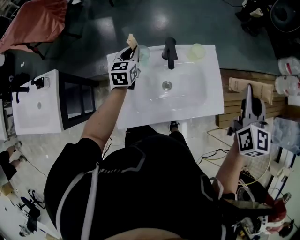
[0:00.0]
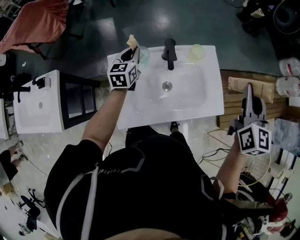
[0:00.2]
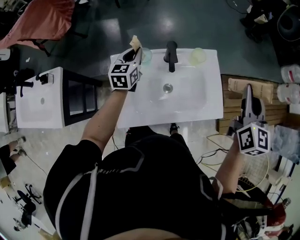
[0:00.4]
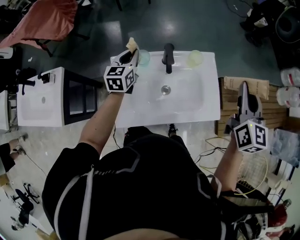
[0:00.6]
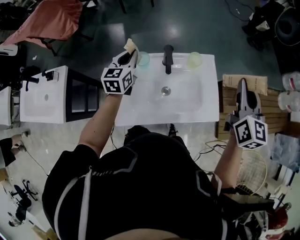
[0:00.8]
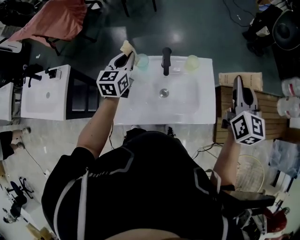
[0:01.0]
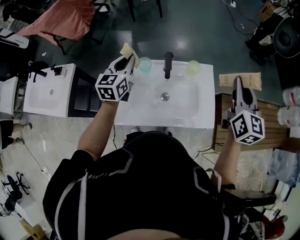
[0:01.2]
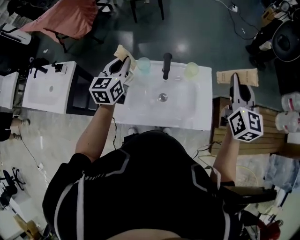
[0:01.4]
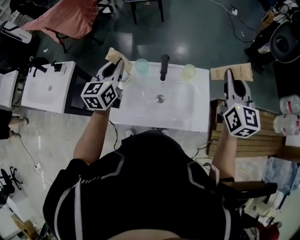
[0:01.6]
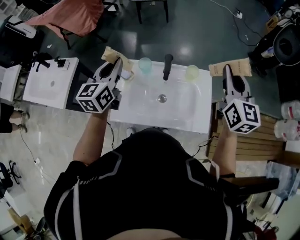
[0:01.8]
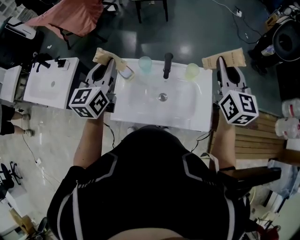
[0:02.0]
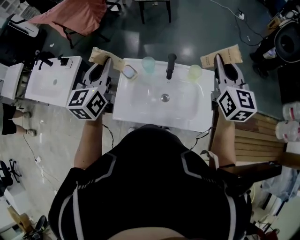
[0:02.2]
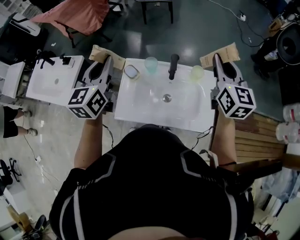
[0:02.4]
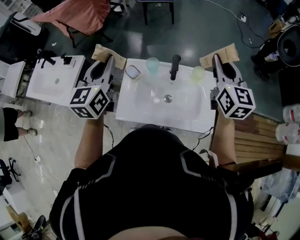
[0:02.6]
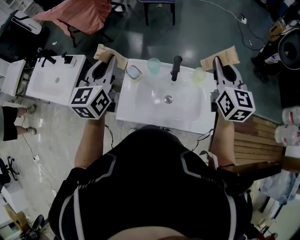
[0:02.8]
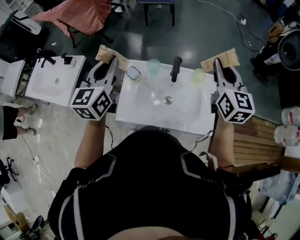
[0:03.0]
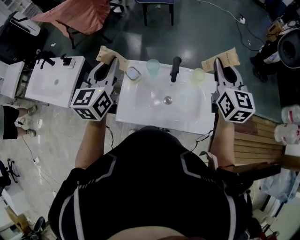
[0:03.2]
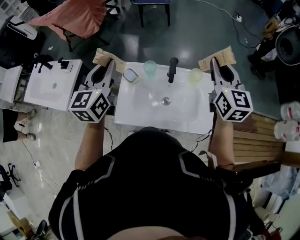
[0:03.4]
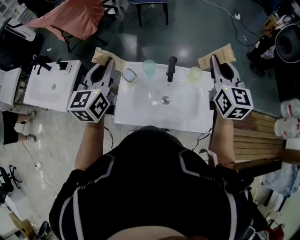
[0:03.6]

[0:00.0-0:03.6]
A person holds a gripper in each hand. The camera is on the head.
0:00.0 to 0:01.8: The left gripper moves upward and backward, roughly 25 cm, and rotates approximately 20 degrees. The right gripper travels forward and upward by roughly 10 cm, and changes its angle by approximately 20 degrees.
0:01.8 to 0:03.6: The left gripper moves upward, roughly 5 cm; the right gripper is displaced to the left by about 5 cm.

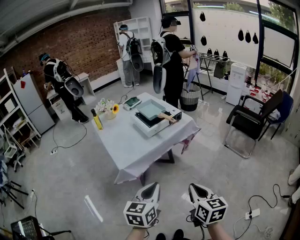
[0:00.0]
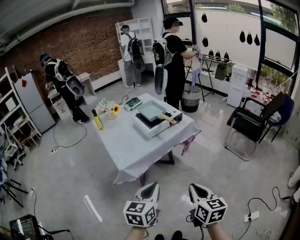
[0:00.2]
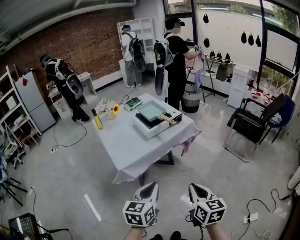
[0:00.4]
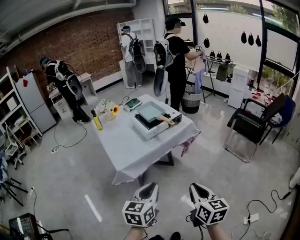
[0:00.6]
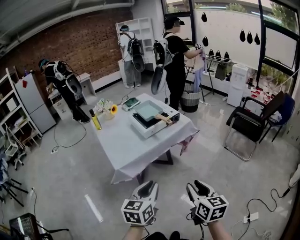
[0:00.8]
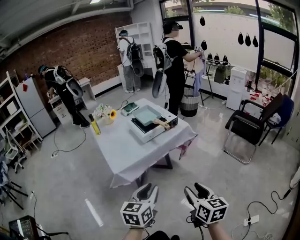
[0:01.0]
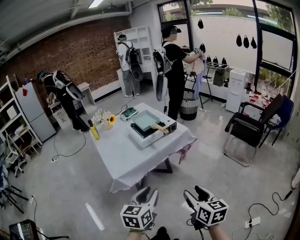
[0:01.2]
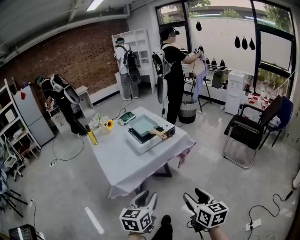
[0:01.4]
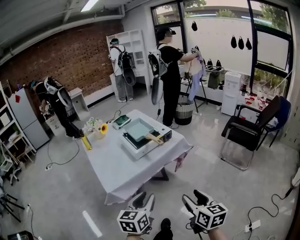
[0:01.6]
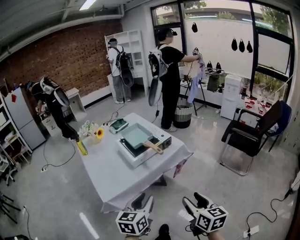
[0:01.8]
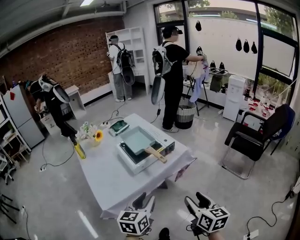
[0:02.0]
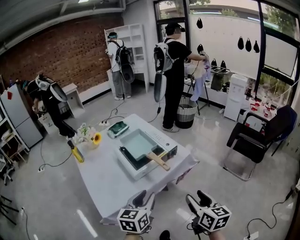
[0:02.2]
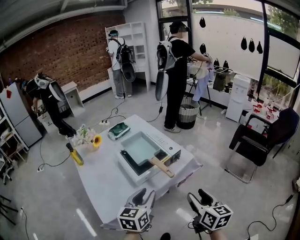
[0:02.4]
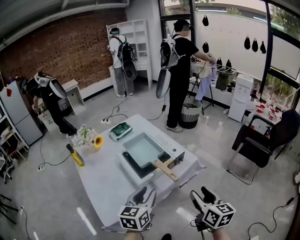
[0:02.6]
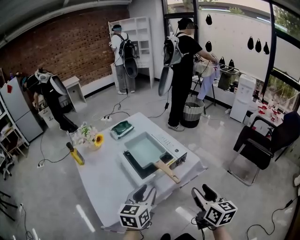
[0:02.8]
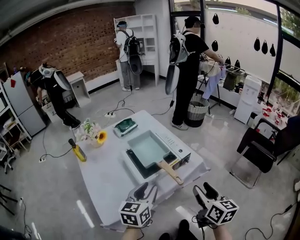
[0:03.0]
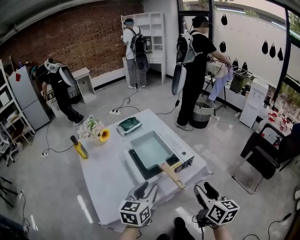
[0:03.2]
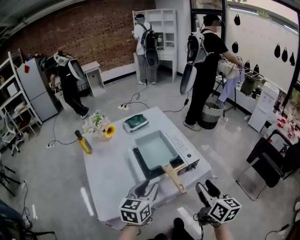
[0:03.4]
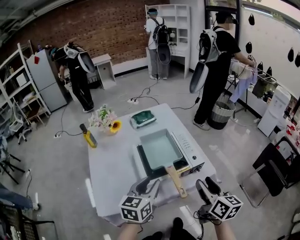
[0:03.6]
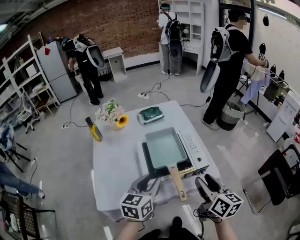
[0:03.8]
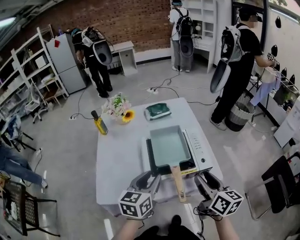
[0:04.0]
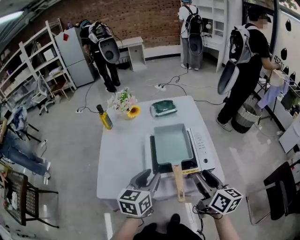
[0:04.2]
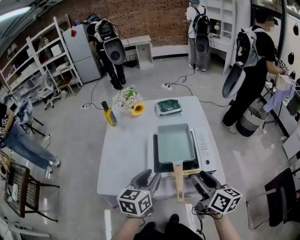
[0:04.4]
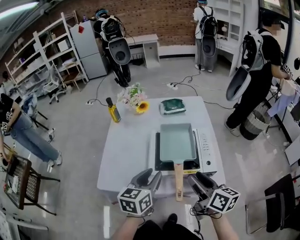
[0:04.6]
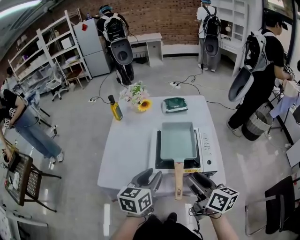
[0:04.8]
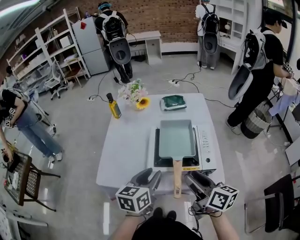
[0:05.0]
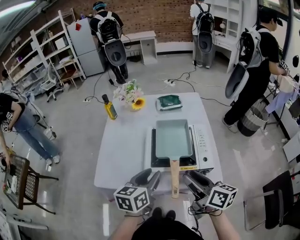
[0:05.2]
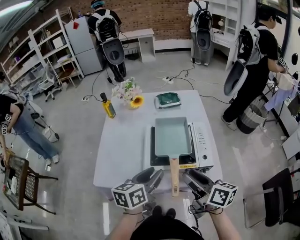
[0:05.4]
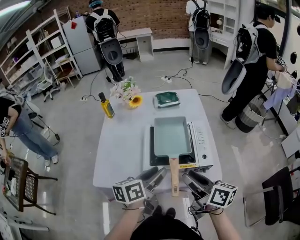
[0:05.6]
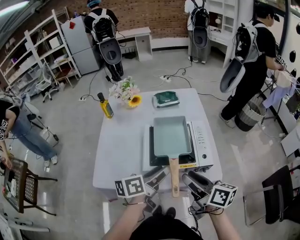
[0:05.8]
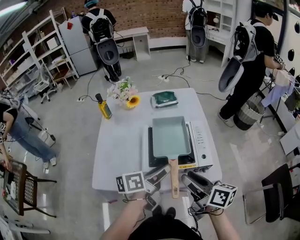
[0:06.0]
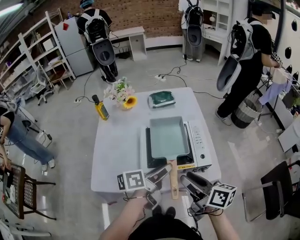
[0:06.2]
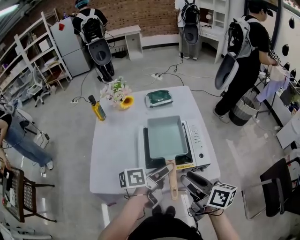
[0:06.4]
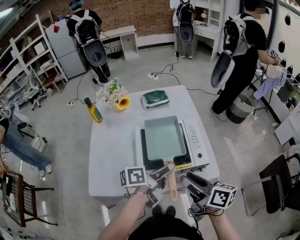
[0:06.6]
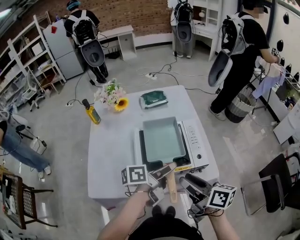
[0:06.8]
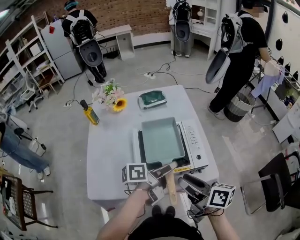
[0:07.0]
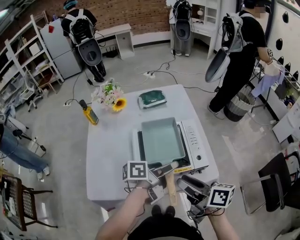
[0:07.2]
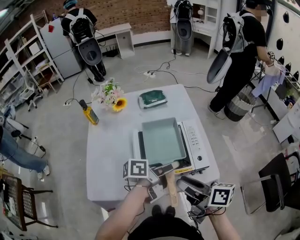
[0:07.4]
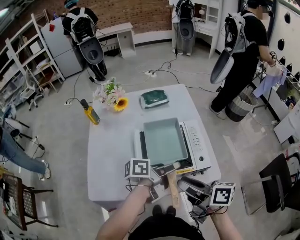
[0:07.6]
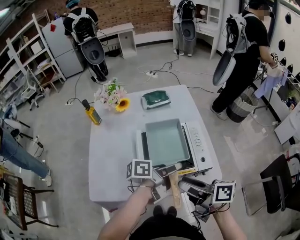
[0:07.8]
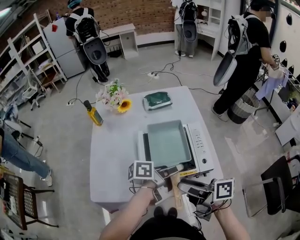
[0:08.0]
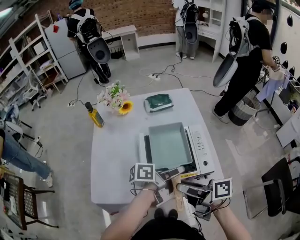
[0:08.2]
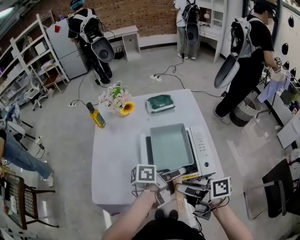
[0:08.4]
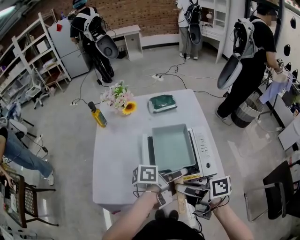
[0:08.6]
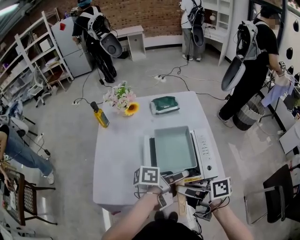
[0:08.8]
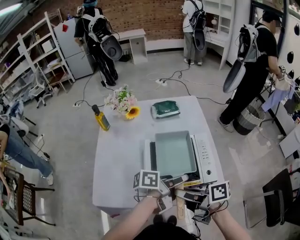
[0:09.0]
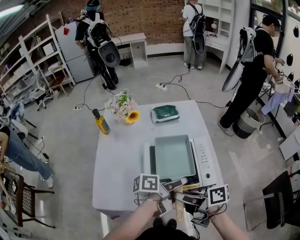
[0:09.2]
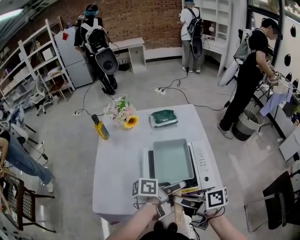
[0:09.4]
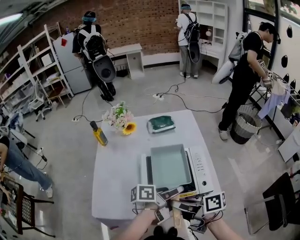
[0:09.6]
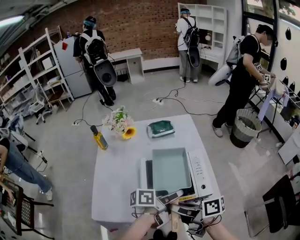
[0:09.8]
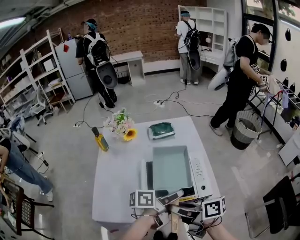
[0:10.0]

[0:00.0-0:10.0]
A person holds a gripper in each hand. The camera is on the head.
0:00.0 to 0:01.4: The right gripper is displaced to the right by approximately 5 cm, and opens up. The left gripper ends up some 5 cm from where it was, and opens.
0:01.4 to 0:02.8: The grippers both shift forward by approximately 35 cm.
0:02.8 to 0:04.2: The left gripper changes place by about 10 cm, and changes its angle by some 30 degrees. Meanwhile the right gripper shifts by roughly 20 cm, and turns by roughly 40 degrees.
0:04.2 to 0:05.8: The left gripper moves approximately 5 cm, and changes its angle by about 40 degrees, while the right gripper rotates approximately 20 degrees.
0:05.8 to 0:07.2: The left gripper goes some 10 cm to the right and forward, and changes its angle by about 30 degrees.
0:07.2 to 0:08.6: The right gripper shifts by some 5 cm, and turns by roughly 20 degrees.
0:08.6 to 0:10.0: The grippers stay close to where they were, moving slightly.

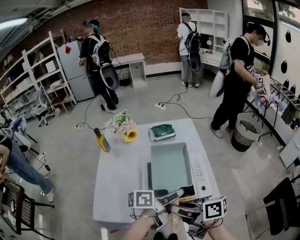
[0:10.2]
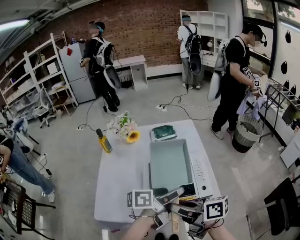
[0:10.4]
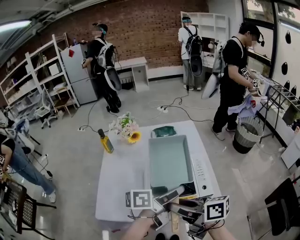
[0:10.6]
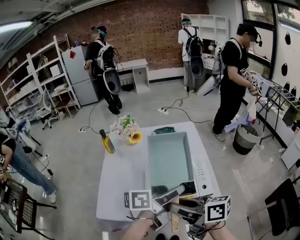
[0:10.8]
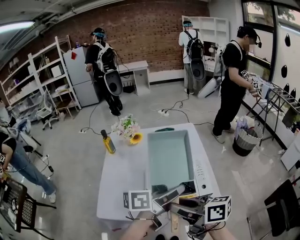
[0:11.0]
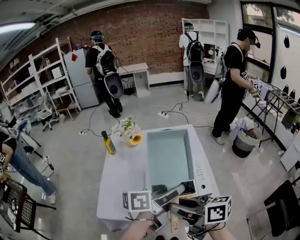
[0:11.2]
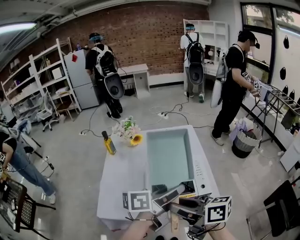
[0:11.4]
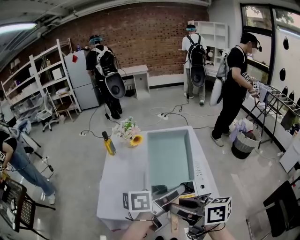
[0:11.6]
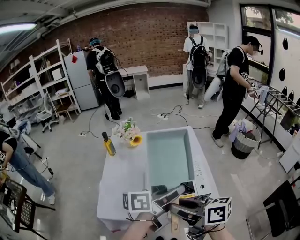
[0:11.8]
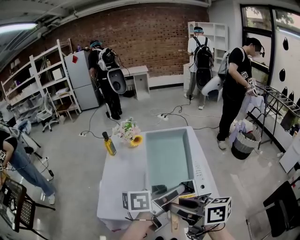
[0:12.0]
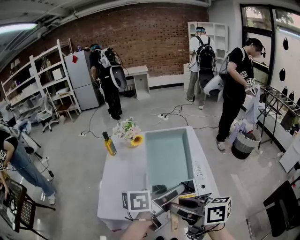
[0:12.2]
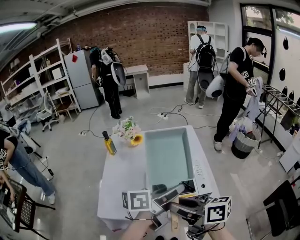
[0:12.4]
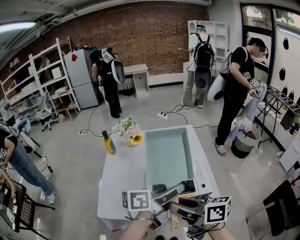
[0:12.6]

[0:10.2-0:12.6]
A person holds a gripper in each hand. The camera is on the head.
0:10.2 to 0:11.4: Both grippers travel together upward, about 10 cm.
0:11.4 to 0:12.6: Both grippers stay put.

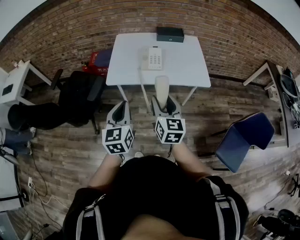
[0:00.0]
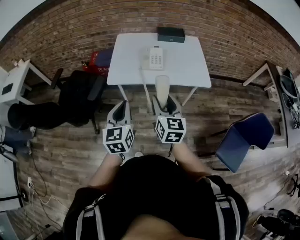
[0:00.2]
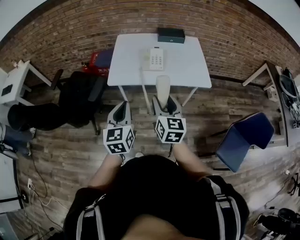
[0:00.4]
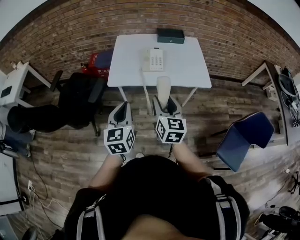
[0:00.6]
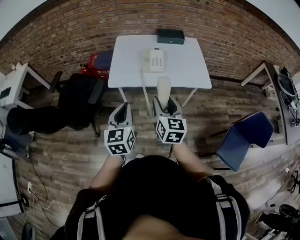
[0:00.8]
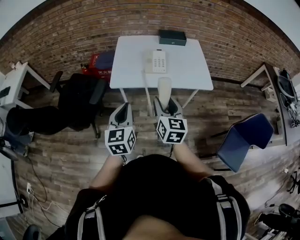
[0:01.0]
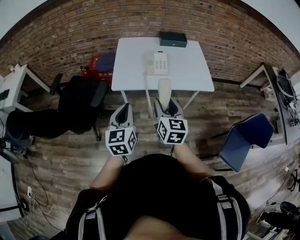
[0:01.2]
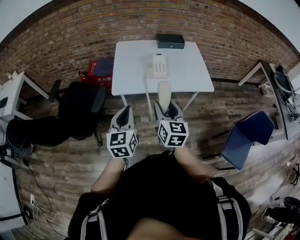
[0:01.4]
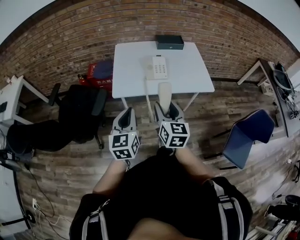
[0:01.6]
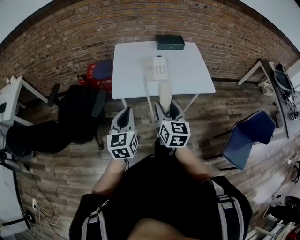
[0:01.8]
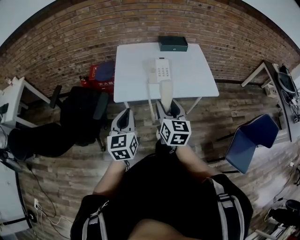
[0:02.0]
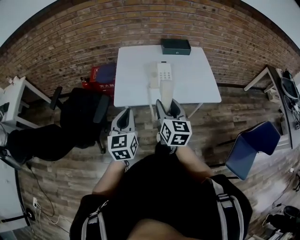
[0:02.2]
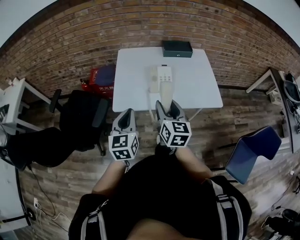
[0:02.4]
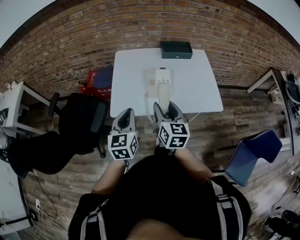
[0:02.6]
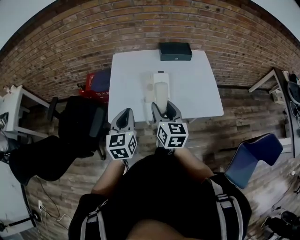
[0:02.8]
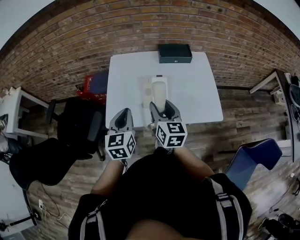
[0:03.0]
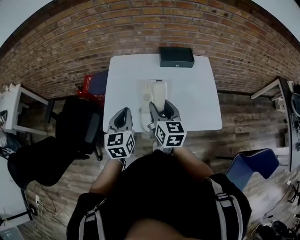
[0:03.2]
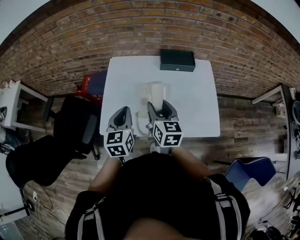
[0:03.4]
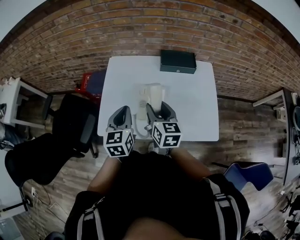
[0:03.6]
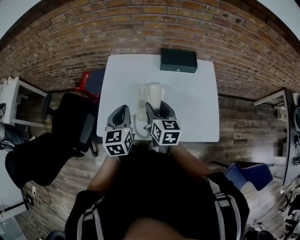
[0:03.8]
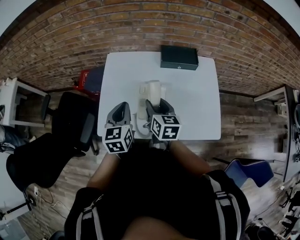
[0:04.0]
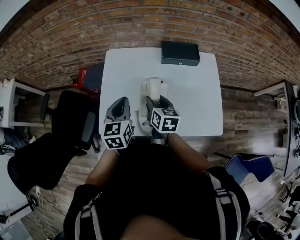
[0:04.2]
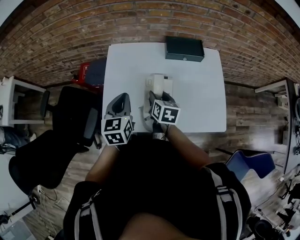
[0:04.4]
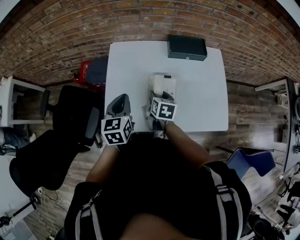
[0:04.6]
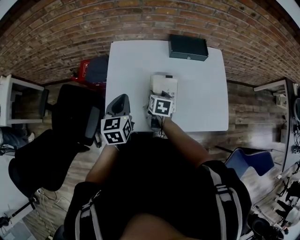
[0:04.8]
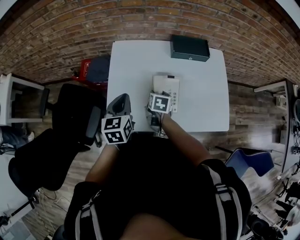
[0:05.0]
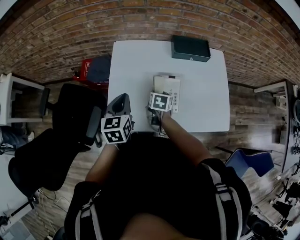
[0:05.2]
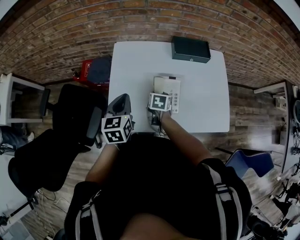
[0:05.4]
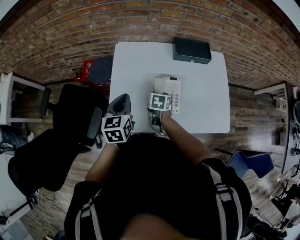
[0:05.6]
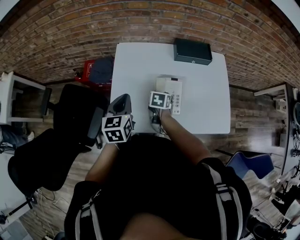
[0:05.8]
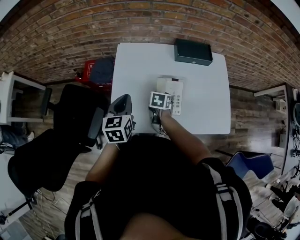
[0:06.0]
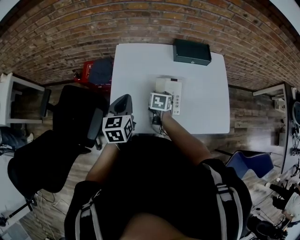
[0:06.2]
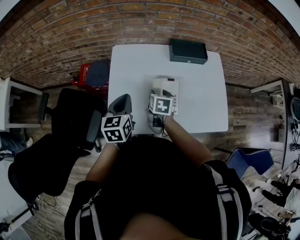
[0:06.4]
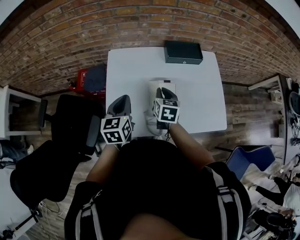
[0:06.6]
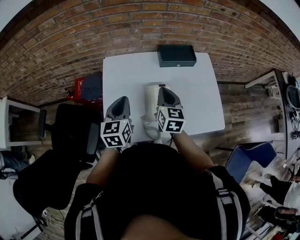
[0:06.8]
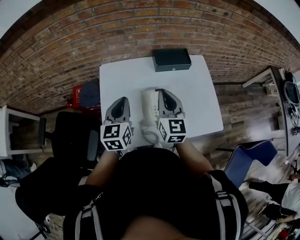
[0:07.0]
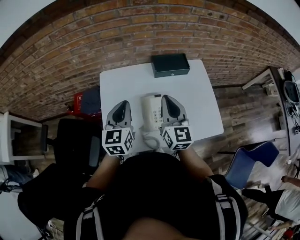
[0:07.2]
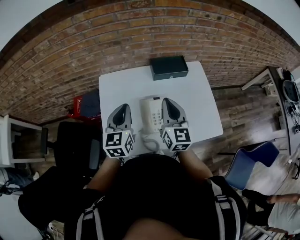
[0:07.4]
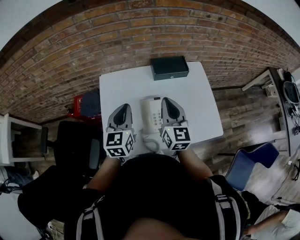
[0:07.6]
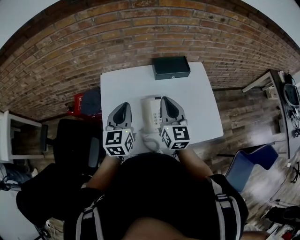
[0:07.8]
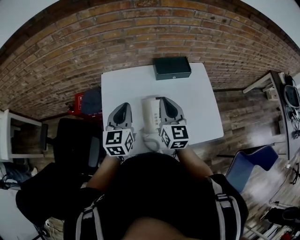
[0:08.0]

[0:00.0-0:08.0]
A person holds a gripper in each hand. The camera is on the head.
0:00.0 to 0:01.6: Both grippers travel together to the left, about 10 cm.
0:01.6 to 0:03.2: The two grippers go roughly 30 cm forward.
0:03.2 to 0:04.8: The right gripper is displaced downward and forward by roughly 25 cm, and tilts its fingers roughly 30 degrees downward, while the left gripper moves forward and downward, some 15 cm.
0:04.8 to 0:06.4: The grippers make only small movements.
0:06.4 to 0:08.0: The left gripper travels upward and to the right by about 10 cm. Meanwhile the right gripper moves upward, approximately 20 cm, angles its fingers upward, by some 40 degrees, and closes up.
